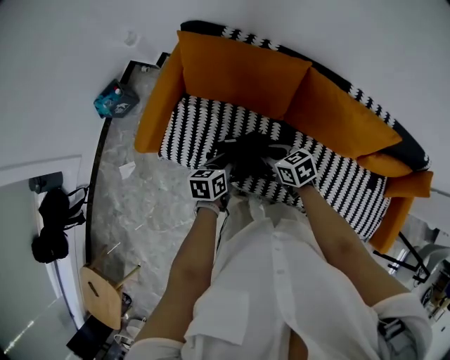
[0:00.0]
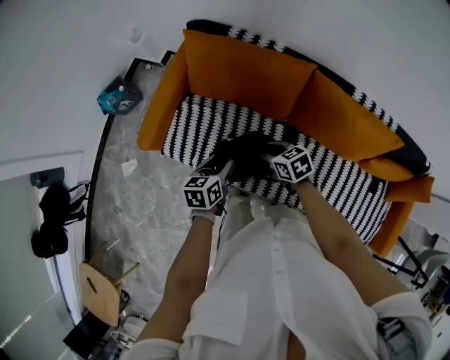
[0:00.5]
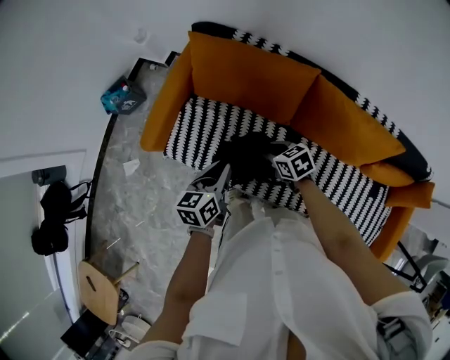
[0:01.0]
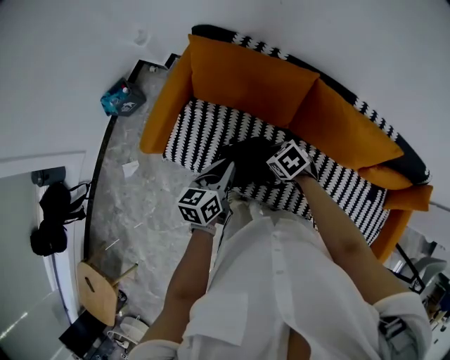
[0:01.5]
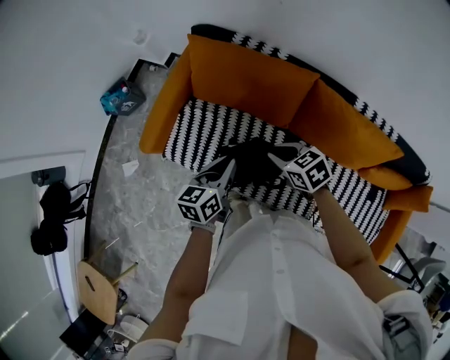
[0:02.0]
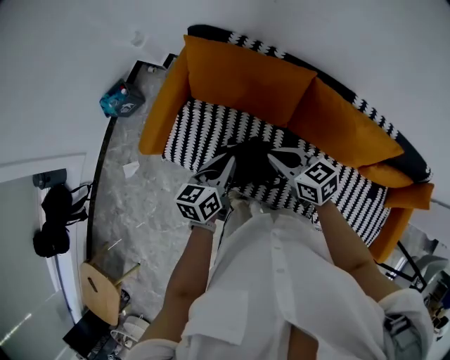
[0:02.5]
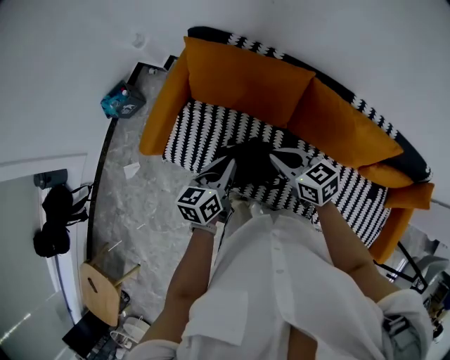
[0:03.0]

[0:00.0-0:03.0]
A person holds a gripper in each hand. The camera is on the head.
0:00.0 to 0:01.5: The left gripper travels upward by roughly 10 cm, and opens, then closes once more. Meanwhile the right gripper rotates approximately 30 degrees.
0:01.5 to 0:03.0: The right gripper moves upward, some 10 cm, tips its fingers upward by approximately 30 degrees, and closes its fingers.

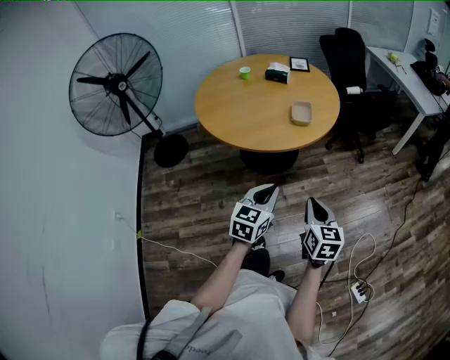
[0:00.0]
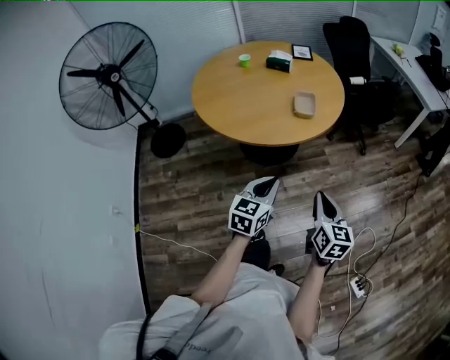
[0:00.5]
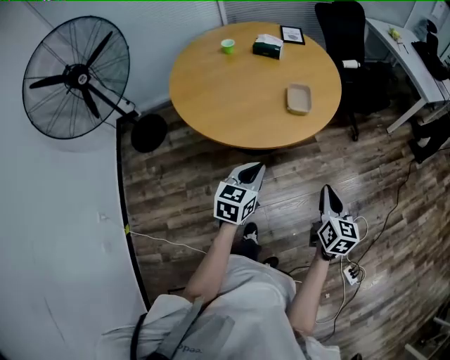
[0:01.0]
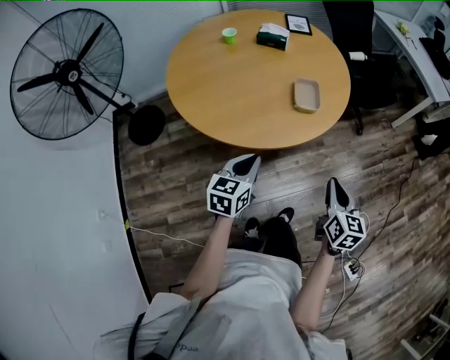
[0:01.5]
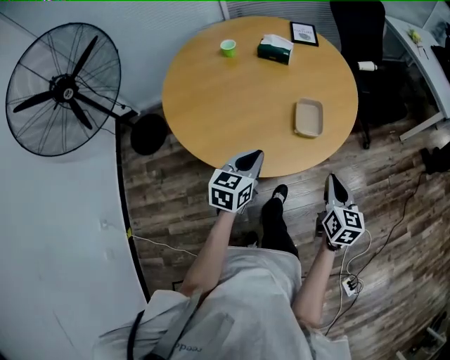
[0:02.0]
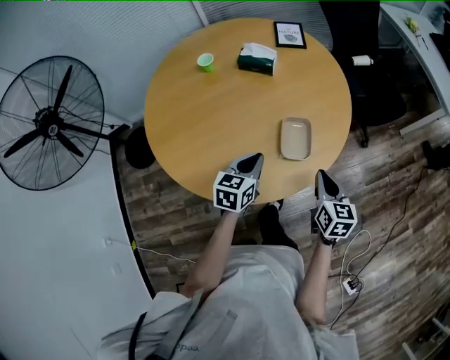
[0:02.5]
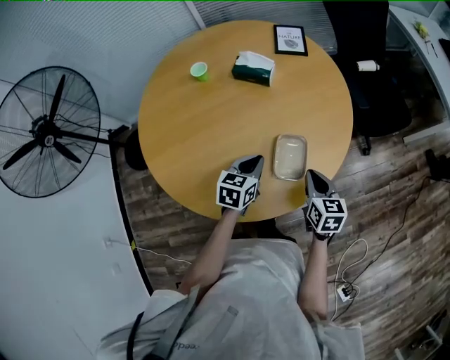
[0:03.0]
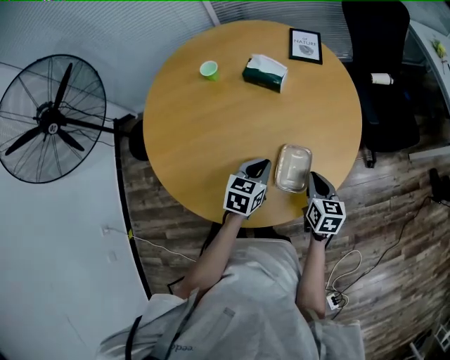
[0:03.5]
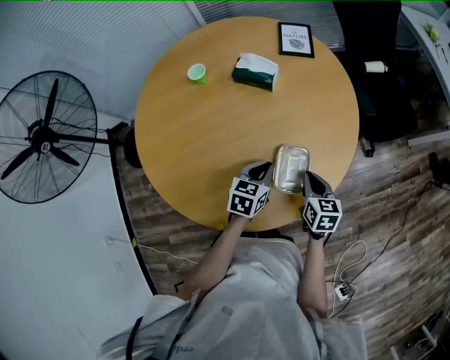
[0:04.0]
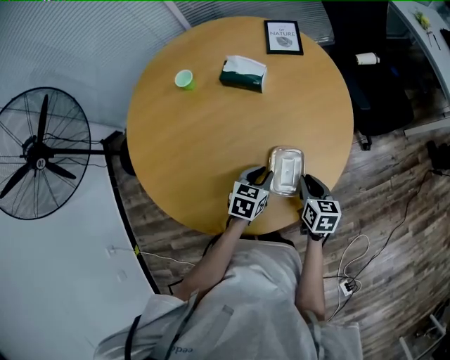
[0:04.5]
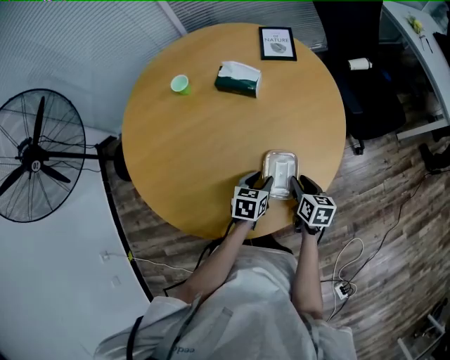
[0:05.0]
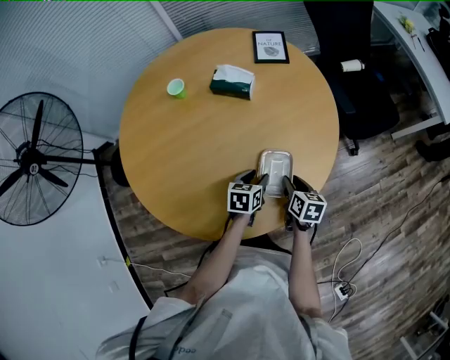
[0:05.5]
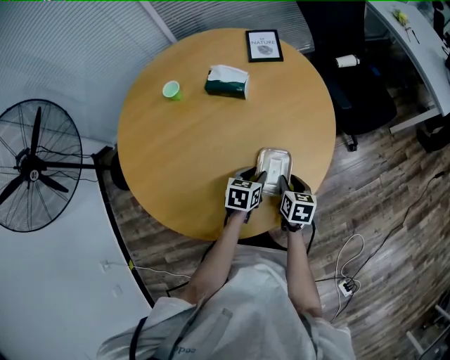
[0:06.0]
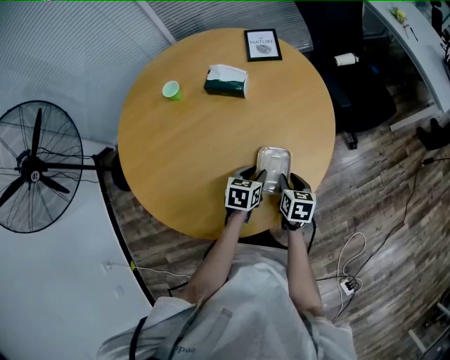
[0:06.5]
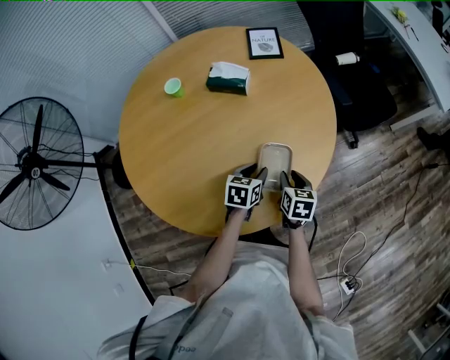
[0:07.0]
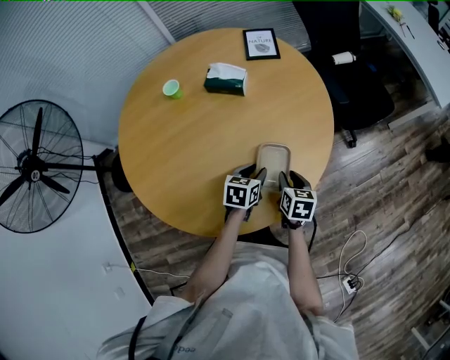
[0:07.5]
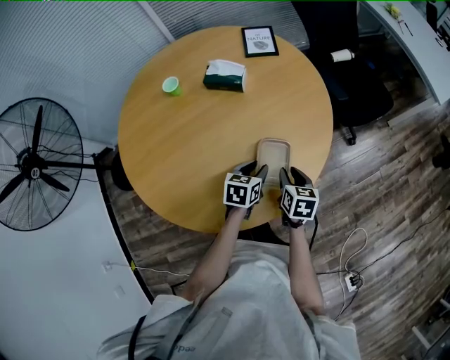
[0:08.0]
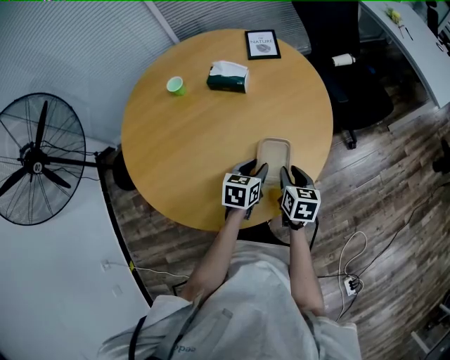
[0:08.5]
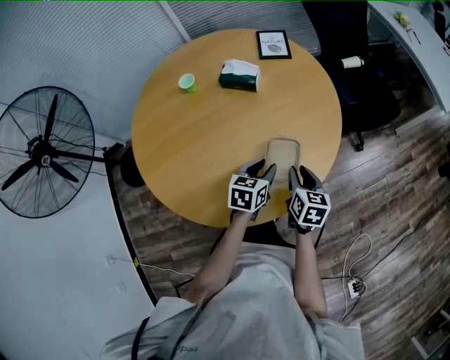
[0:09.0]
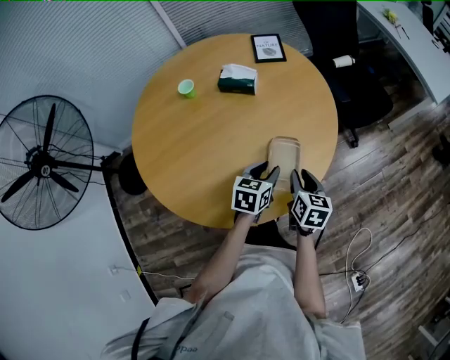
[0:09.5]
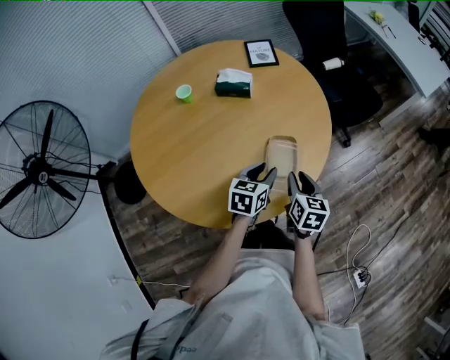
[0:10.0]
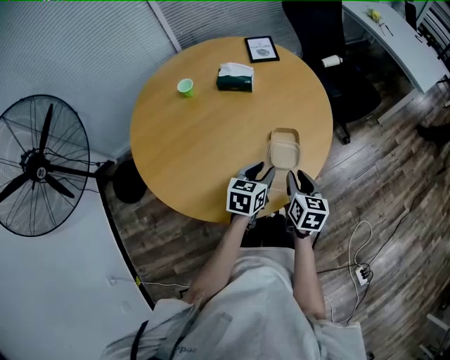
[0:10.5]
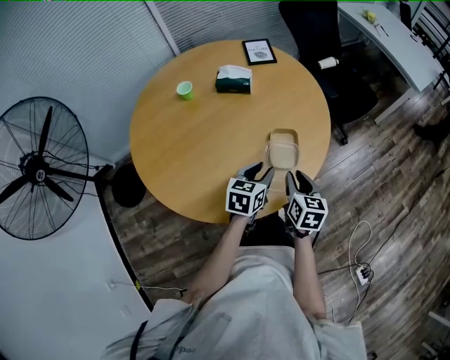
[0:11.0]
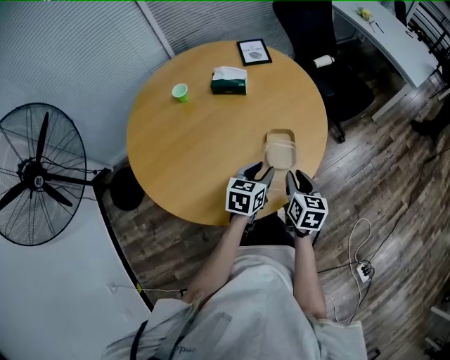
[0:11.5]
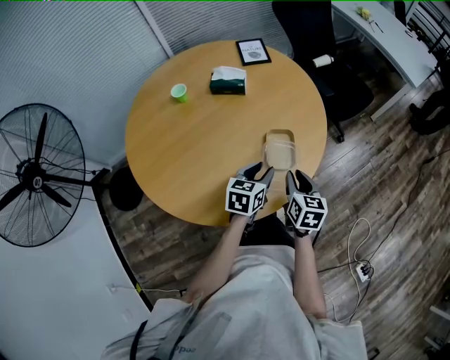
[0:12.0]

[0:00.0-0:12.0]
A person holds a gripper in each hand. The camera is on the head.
0:00.0 to 0:02.0: Both grippers move forward, approximately 35 cm.
0:02.0 to 0:04.0: The grippers both shift forward and downward by some 25 cm.
0:04.0 to 0:06.0: The grippers both shift downward by some 5 cm. The right gripper opens, while the left gripper opens up.
0:06.0 to 0:08.0: The grippers move only a little.
0:08.0 to 0:10.0: The two grippers go approximately 10 cm upward and backward.
0:10.0 to 0:12.0: The grippers make only small movements.

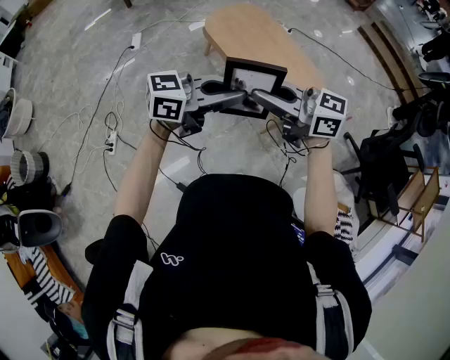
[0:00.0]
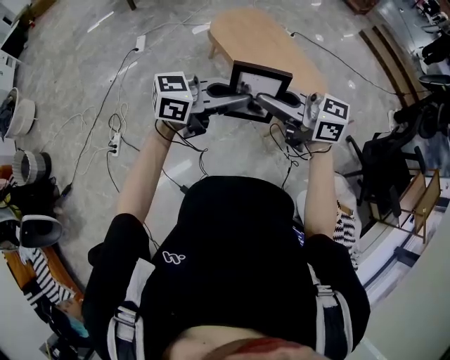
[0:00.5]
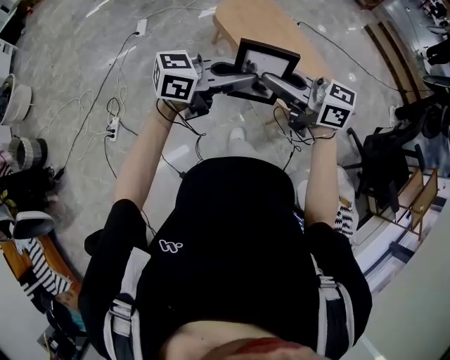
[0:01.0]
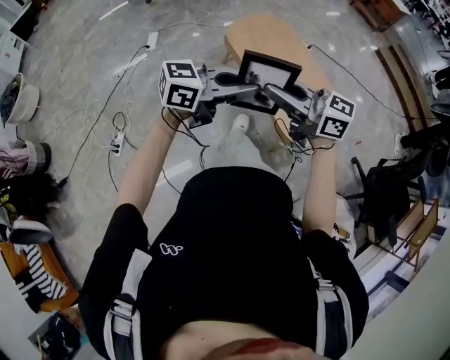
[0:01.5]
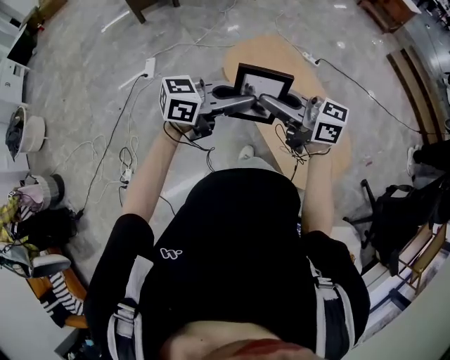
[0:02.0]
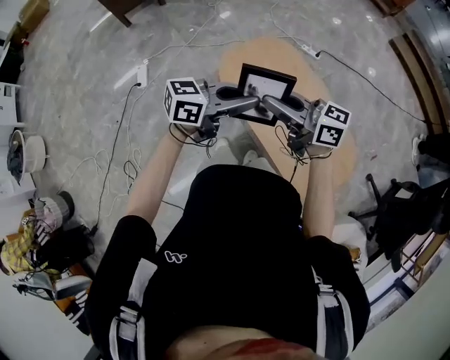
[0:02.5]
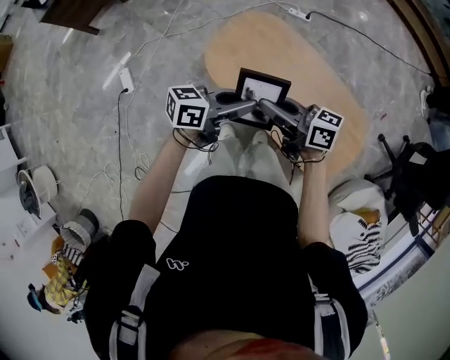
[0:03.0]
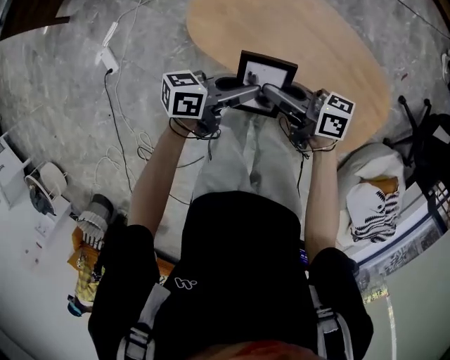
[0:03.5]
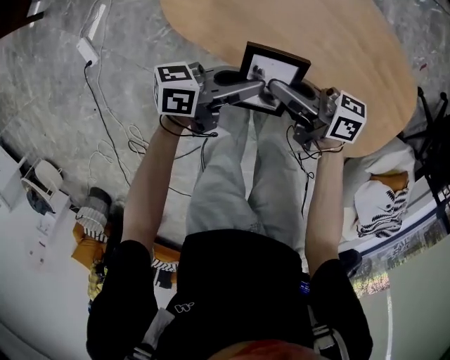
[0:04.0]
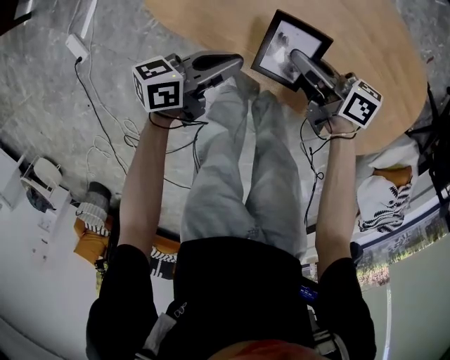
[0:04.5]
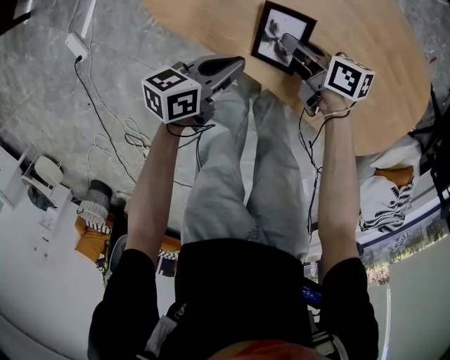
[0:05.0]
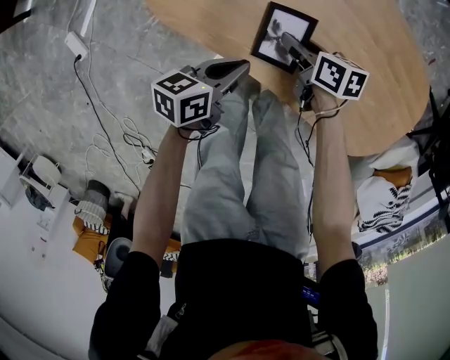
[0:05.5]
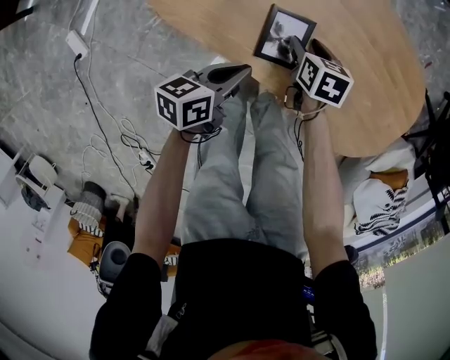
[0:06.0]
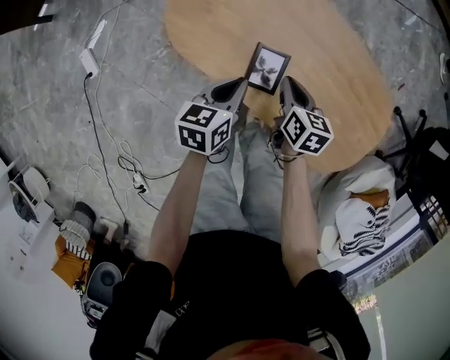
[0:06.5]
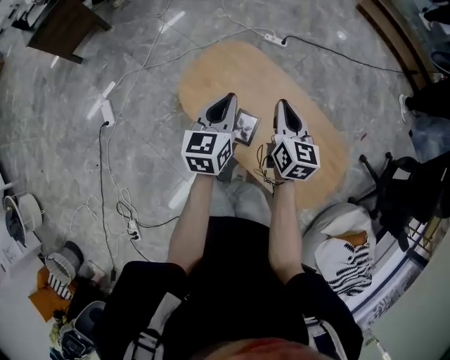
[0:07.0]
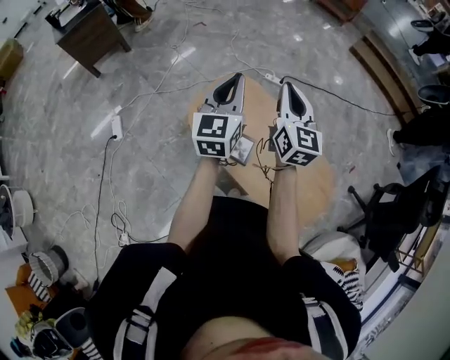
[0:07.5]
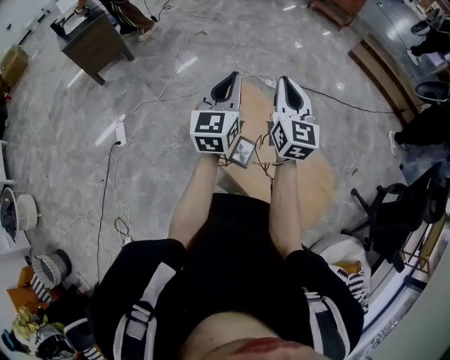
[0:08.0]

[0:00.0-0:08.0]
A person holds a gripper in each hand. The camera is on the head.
0:00.0 to 0:02.0: The left gripper changes place by approximately 40 cm; the right gripper changes place by about 40 cm.
0:02.0 to 0:04.0: The two grippers go some 40 cm downward. The left gripper turns by some 40 degrees; the right gripper swivels approximately 50 degrees.
0:04.0 to 0:06.0: The left gripper shifts approximately 10 cm downward, and rotates roughly 30 degrees, while the right gripper is displaced downward by approximately 20 cm, angles its fingers downward, by some 60 degrees, and opens.
0:06.0 to 0:08.0: The grippers both shift upward by roughly 60 cm. The right gripper points its fingers approximately 60 degrees further upward, and closes up. The left gripper angles its fingers upward, by about 30 degrees.

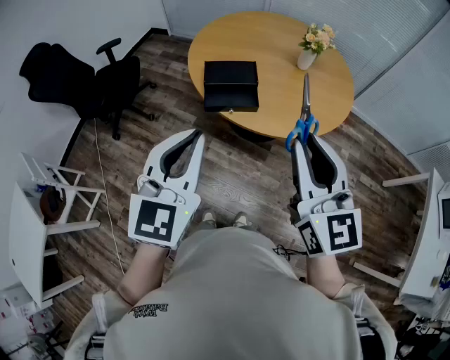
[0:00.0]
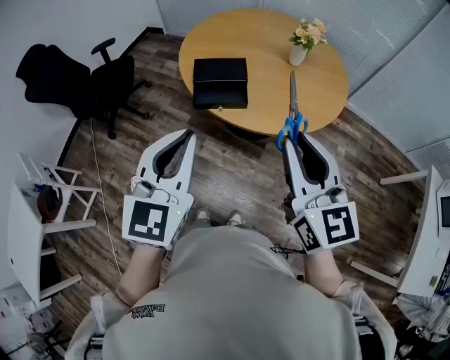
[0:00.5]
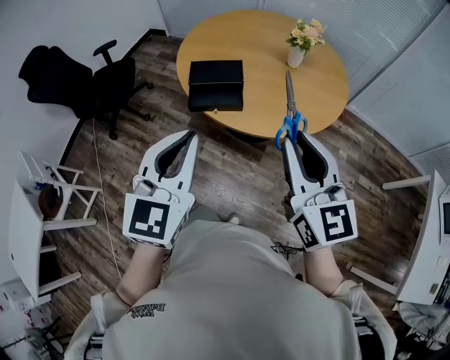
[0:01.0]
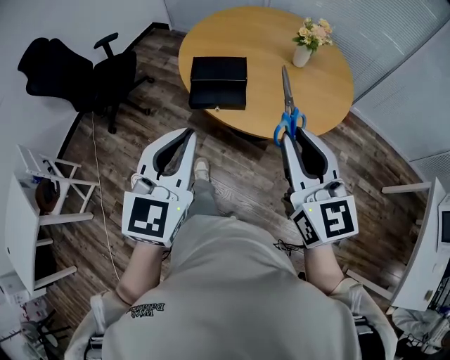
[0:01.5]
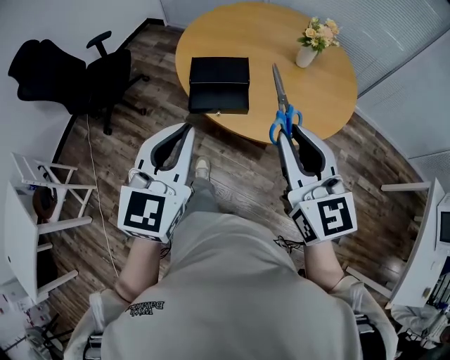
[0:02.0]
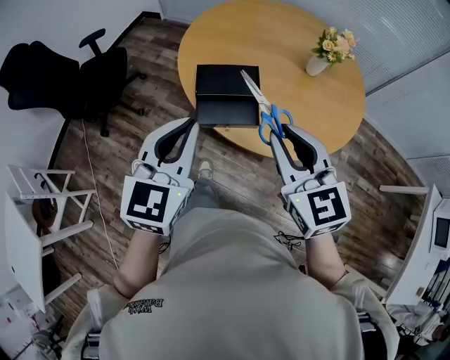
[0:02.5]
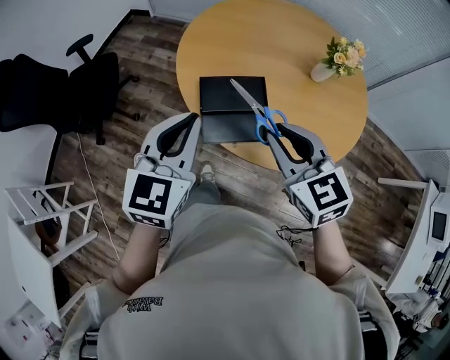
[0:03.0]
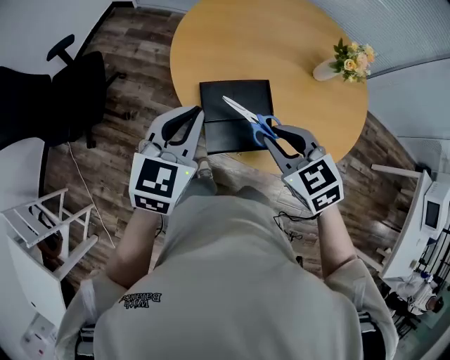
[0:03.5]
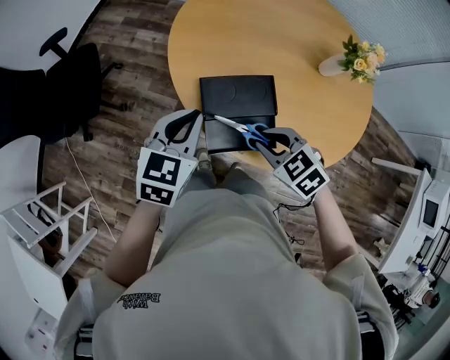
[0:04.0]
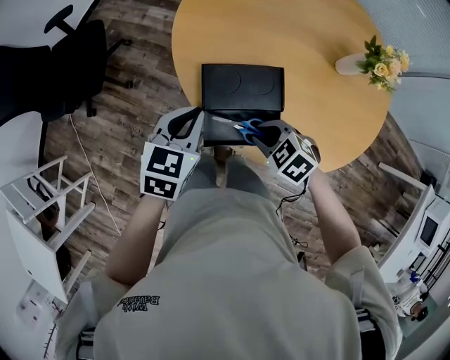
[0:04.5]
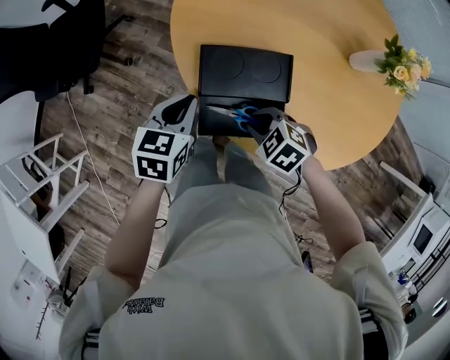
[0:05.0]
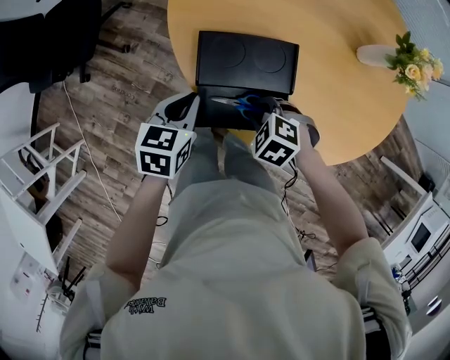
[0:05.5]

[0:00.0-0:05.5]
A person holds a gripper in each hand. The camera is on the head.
0:00.0 to 0:02.0: Both grippers move forward and downward, approximately 10 cm.
0:02.0 to 0:03.5: The right gripper goes approximately 30 cm forward, downward and to the left, and angles its fingers downward, by some 40 degrees. Meanwhile the left gripper is displaced forward by roughly 30 cm.
0:03.5 to 0:05.5: Both grippers move downward, some 25 cm. The right gripper changes its angle by about 50 degrees, while the left gripper changes its angle by approximately 30 degrees.
